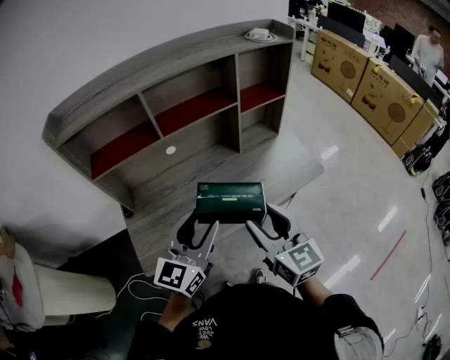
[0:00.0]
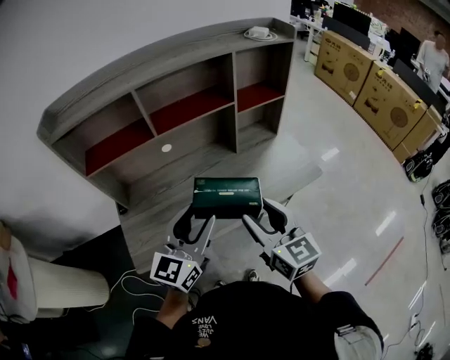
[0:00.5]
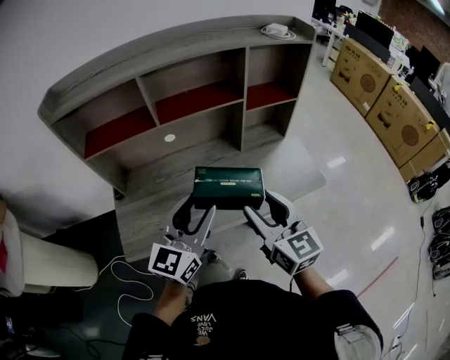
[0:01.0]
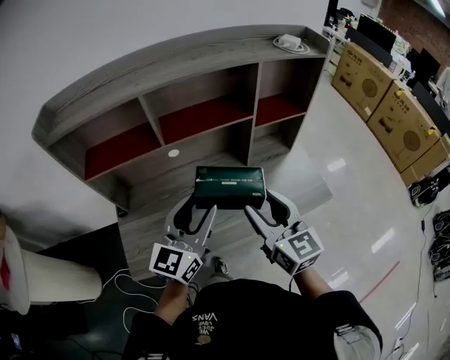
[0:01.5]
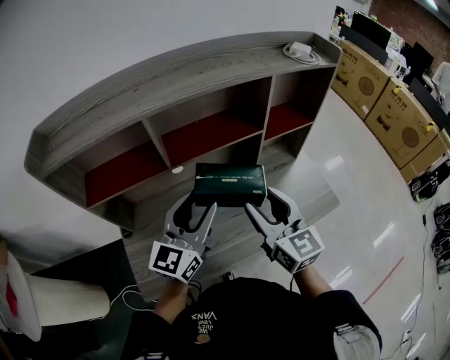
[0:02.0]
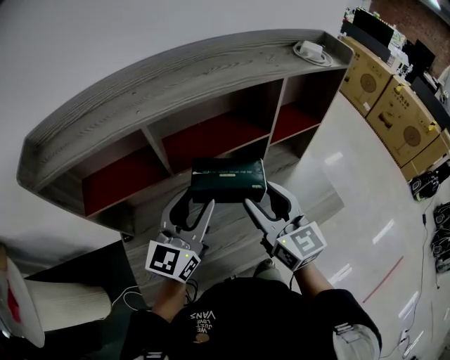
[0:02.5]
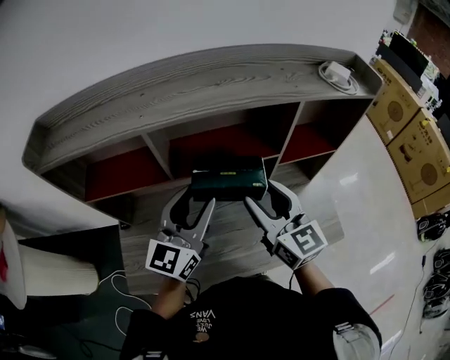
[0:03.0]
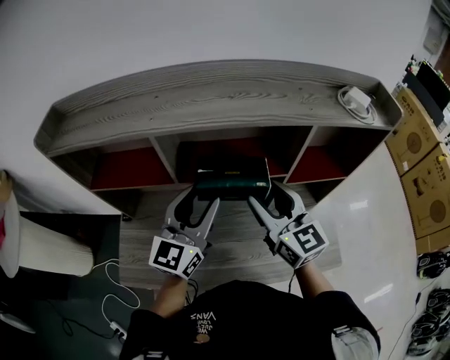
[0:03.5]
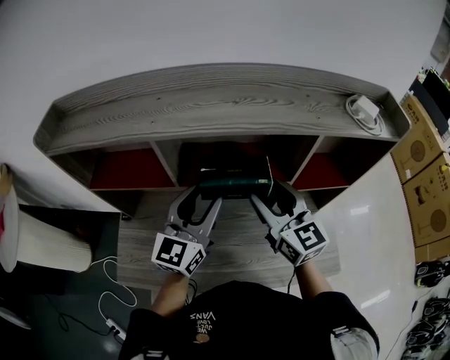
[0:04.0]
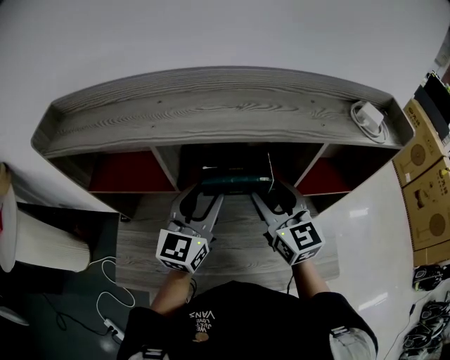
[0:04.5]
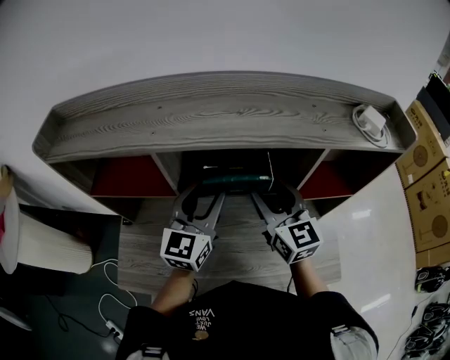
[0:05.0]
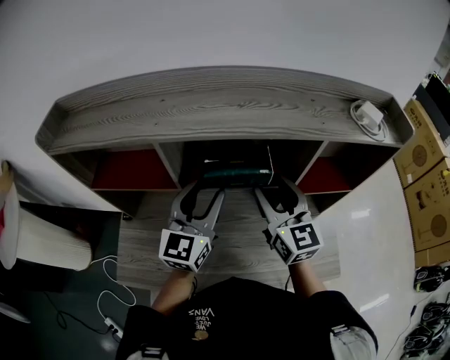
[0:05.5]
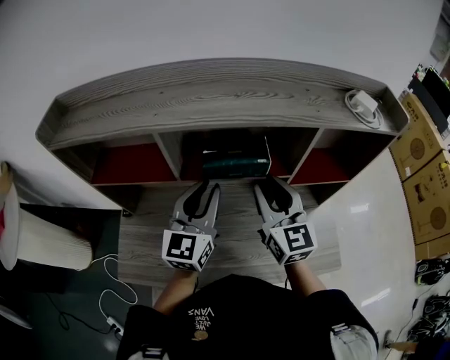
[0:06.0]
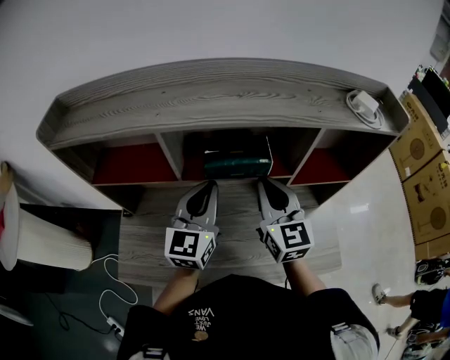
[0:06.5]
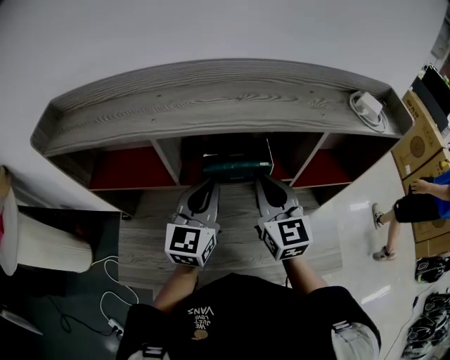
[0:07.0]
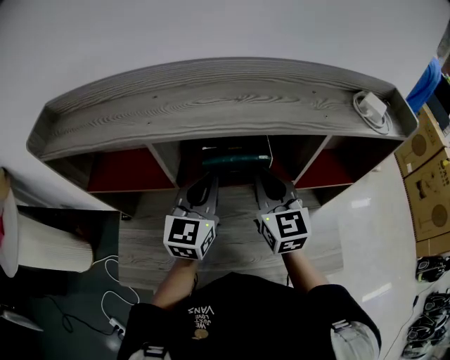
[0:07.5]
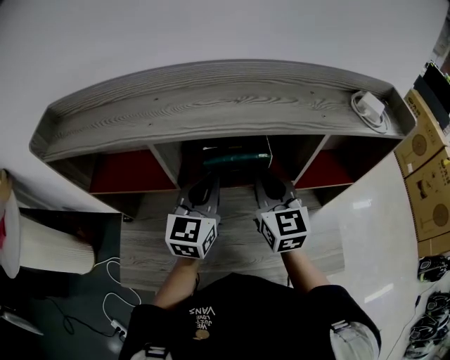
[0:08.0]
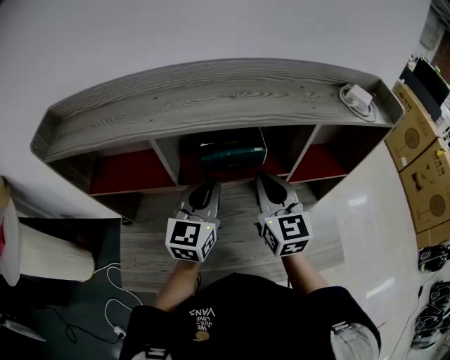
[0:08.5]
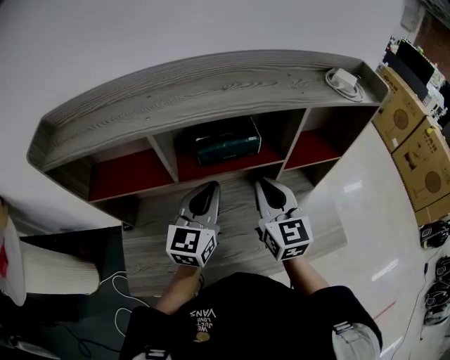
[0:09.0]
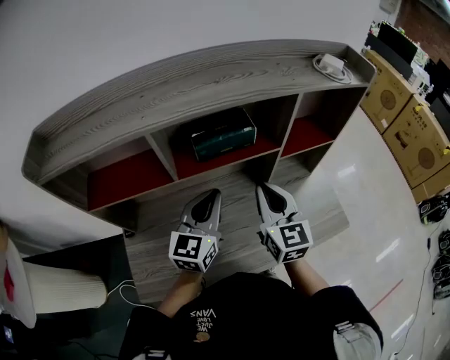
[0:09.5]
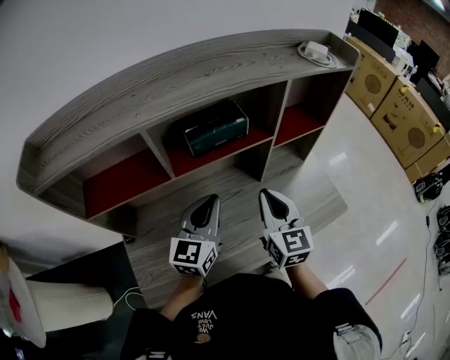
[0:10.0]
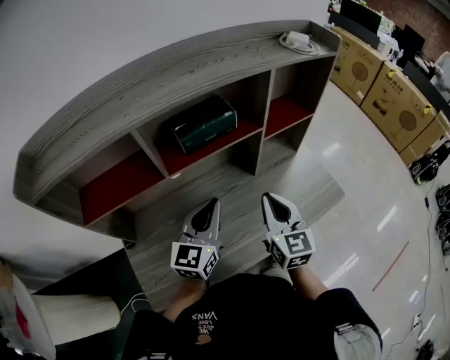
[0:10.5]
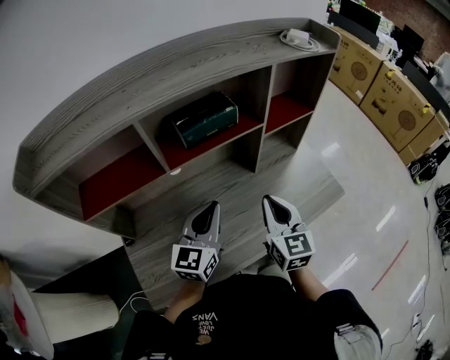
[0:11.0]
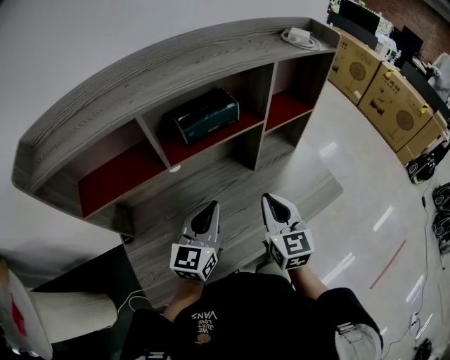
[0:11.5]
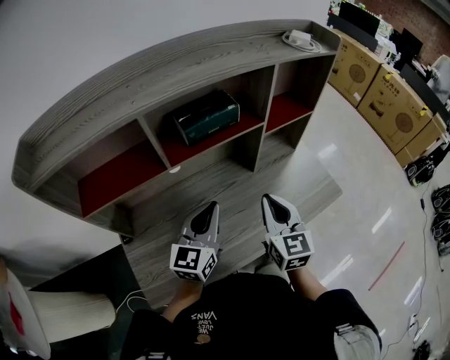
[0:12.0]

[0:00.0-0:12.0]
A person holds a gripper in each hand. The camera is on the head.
0:00.0 to 0:02.0: Both grippers move forward, roughly 20 cm.
0:02.0 to 0:04.0: The grippers both shift forward by approximately 15 cm. The right gripper rotates about 20 degrees; the left gripper turns by some 20 degrees.
0:04.0 to 0:06.0: The right gripper closes.
0:06.0 to 0:08.0: The two grippers go approximately 5 cm forward. The left gripper closes its fingers. Meanwhile the right gripper closes its fingers.
0:08.0 to 0:10.0: The grippers both shift backward and downward by about 15 cm. The left gripper turns by roughly 20 degrees; the right gripper rotates approximately 20 degrees.
0:10.0 to 0:12.0: The left gripper shifts by some 5 cm. The right gripper goes roughly 5 cm backward.

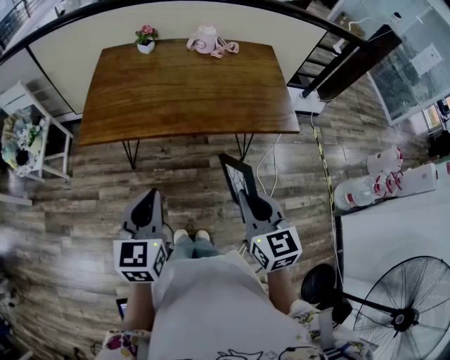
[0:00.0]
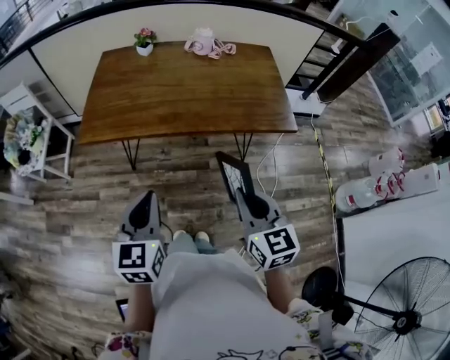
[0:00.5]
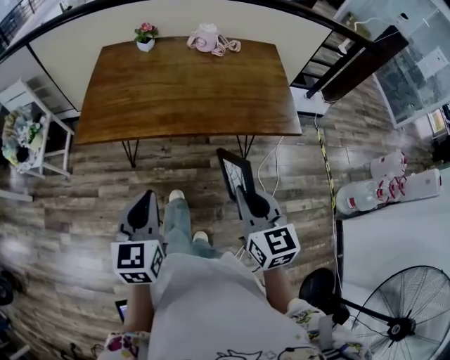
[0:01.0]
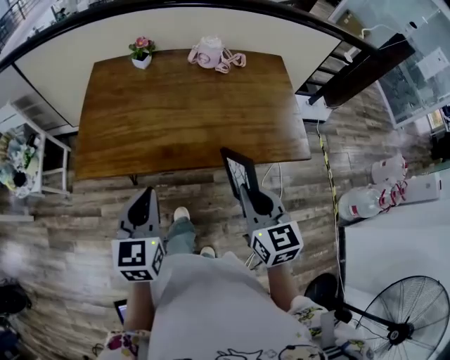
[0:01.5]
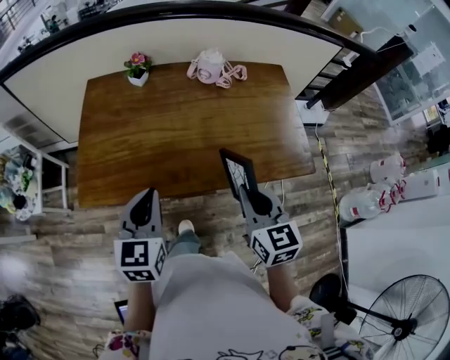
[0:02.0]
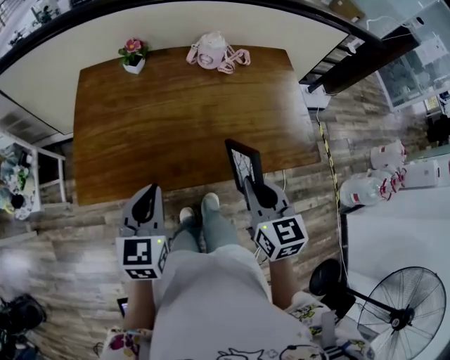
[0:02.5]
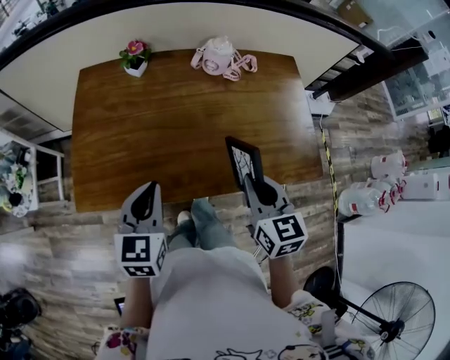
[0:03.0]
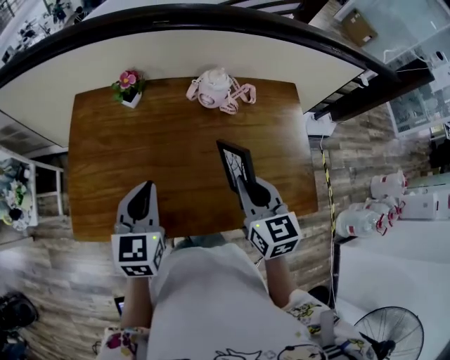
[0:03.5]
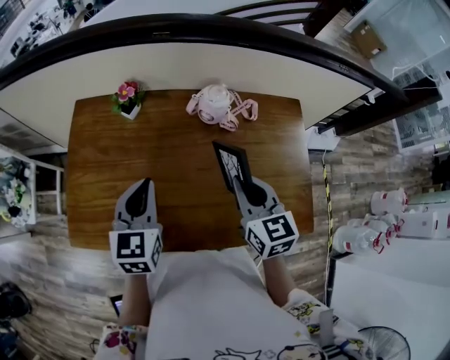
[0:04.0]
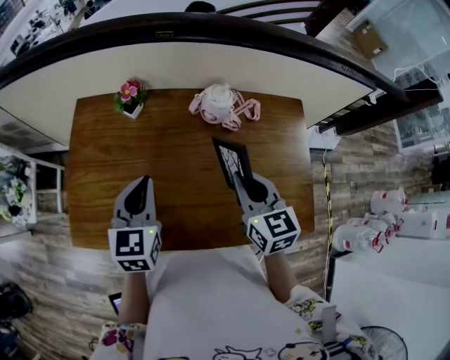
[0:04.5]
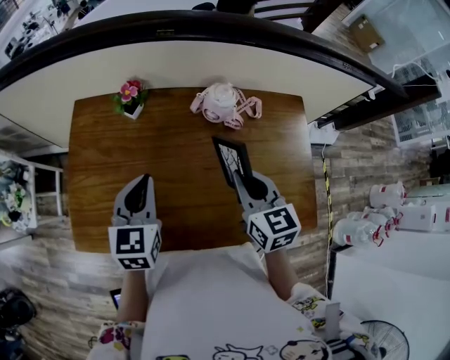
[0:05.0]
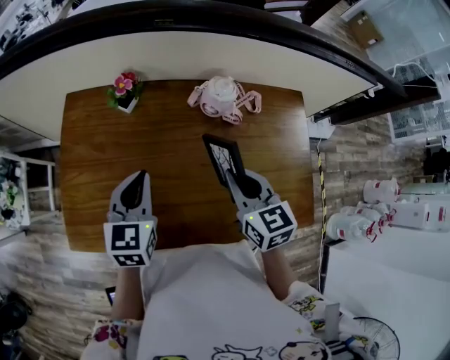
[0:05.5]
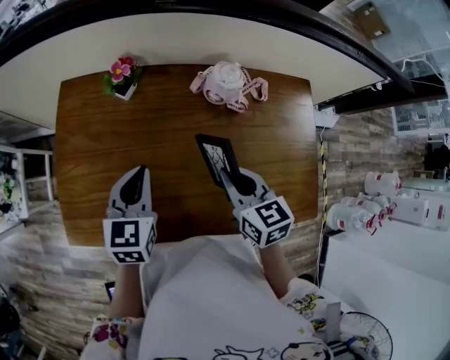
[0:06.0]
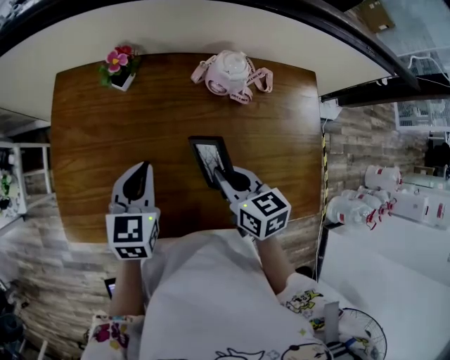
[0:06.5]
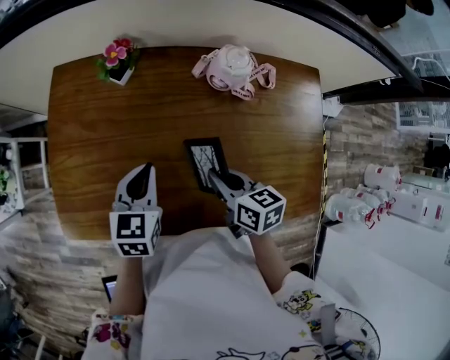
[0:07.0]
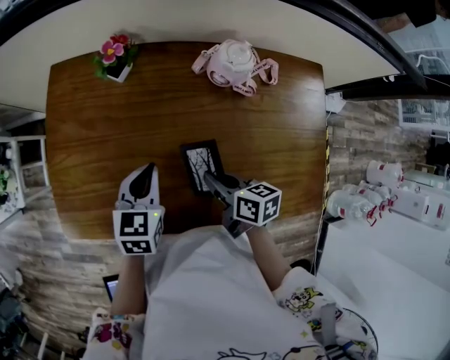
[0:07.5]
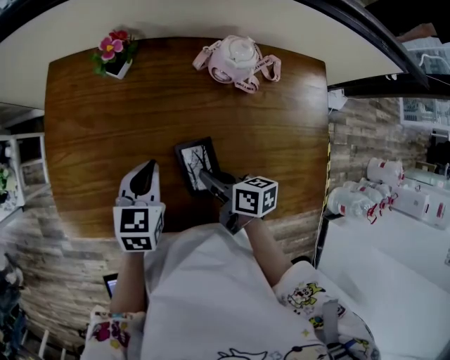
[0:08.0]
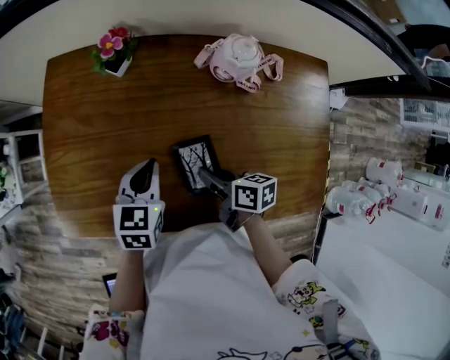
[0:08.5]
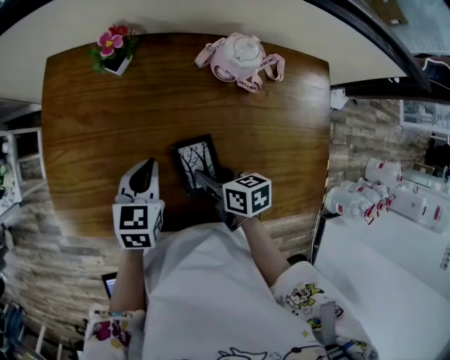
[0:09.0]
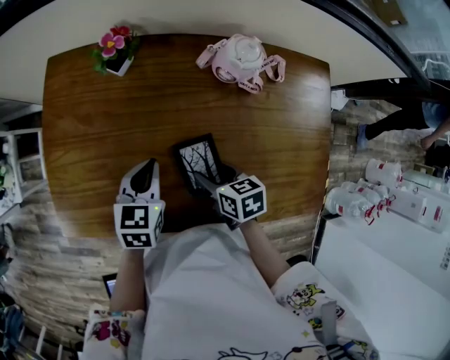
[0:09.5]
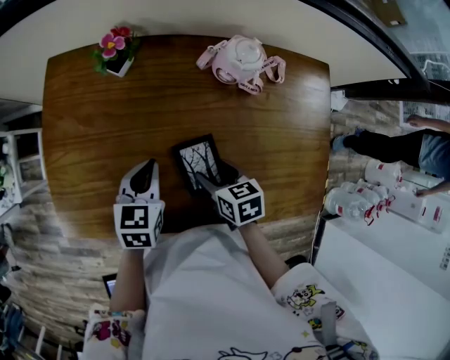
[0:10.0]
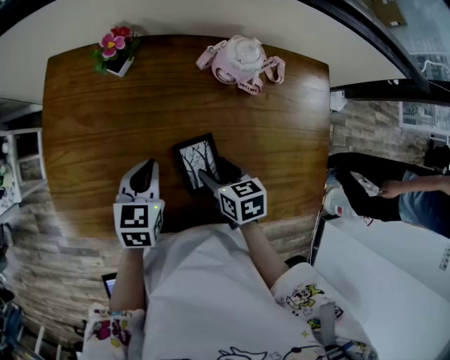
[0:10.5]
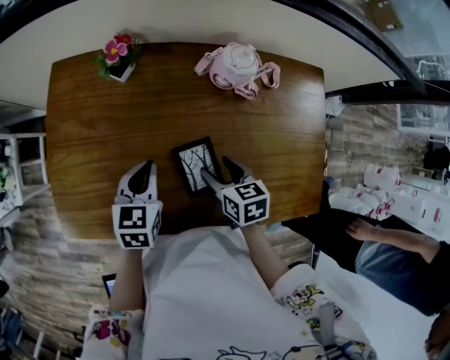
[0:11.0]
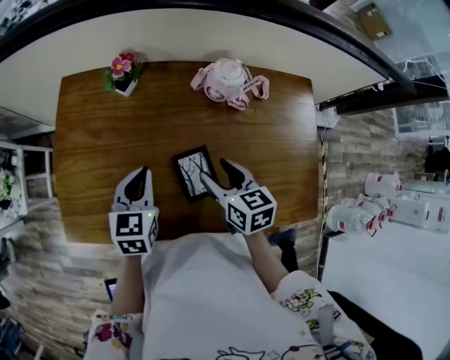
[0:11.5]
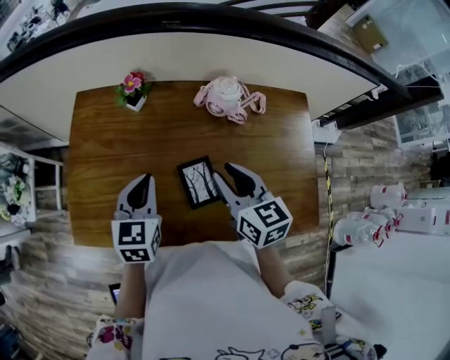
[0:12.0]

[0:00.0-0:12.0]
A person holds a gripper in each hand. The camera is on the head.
0:00.0 to 0:02.0: The grippers both shift forward by approximately 25 cm.
0:02.0 to 0:04.0: Both grippers move forward, approximately 25 cm.
0:04.0 to 0:06.0: The right gripper shifts some 10 cm downward and to the left, while the left gripper shifts some 5 cm downward.
0:06.0 to 0:08.0: The right gripper goes about 15 cm downward, and turns by approximately 40 degrees. The left gripper heads downward, covering approximately 10 cm.
0:08.0 to 0:10.0: The right gripper swivels roughly 30 degrees, and opens its fingers.
0:10.0 to 0:12.0: The right gripper is displaced upward by some 20 cm, changes its angle by some 30 degrees, and closes up. The left gripper is displaced upward by about 10 cm.

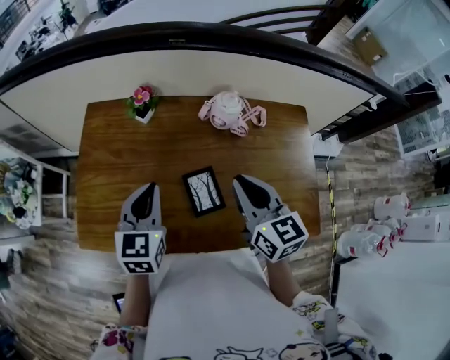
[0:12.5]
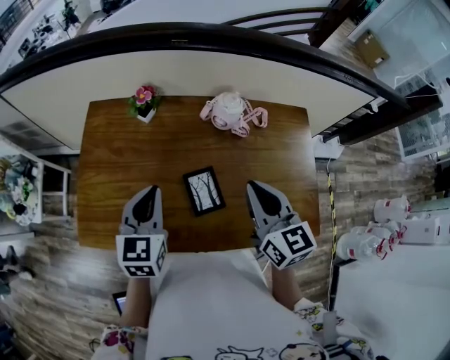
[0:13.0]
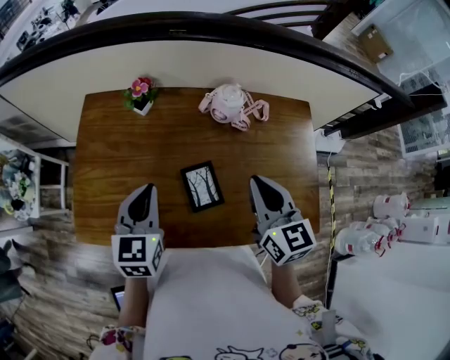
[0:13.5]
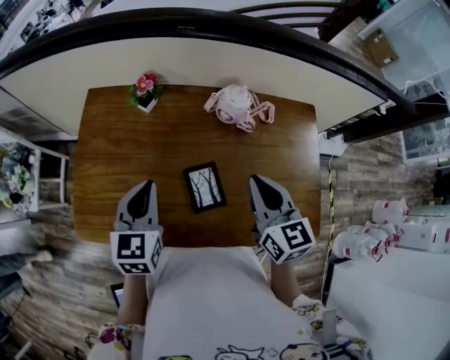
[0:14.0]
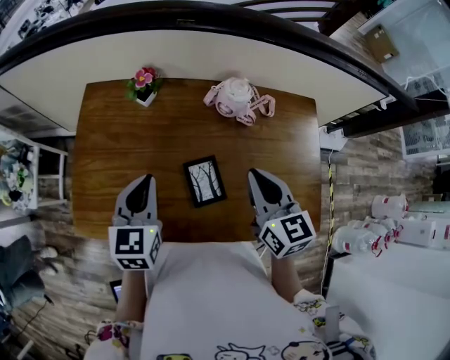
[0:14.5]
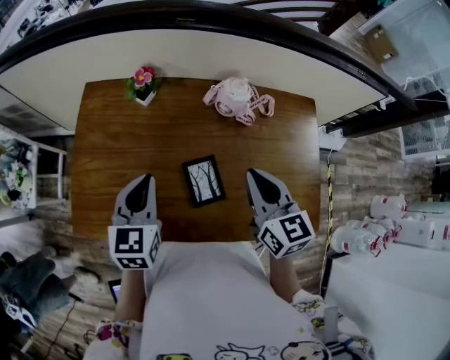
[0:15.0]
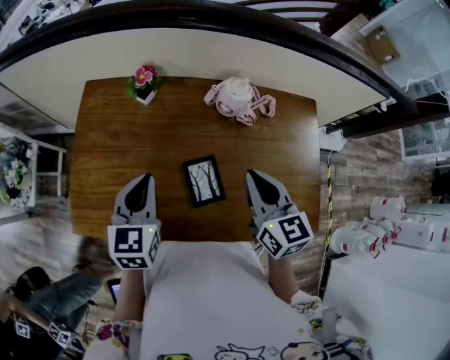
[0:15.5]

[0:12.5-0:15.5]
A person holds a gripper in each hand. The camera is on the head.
0:12.5 to 0:14.0: The grippers move only a little.
0:14.0 to 0:15.5: Both grippers stay about where they are.
